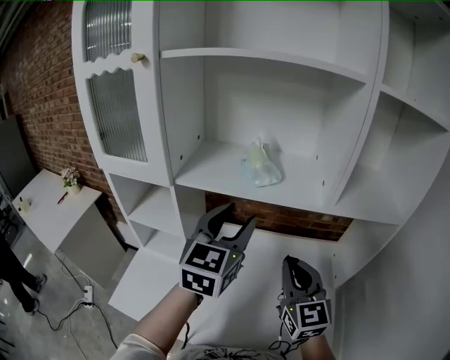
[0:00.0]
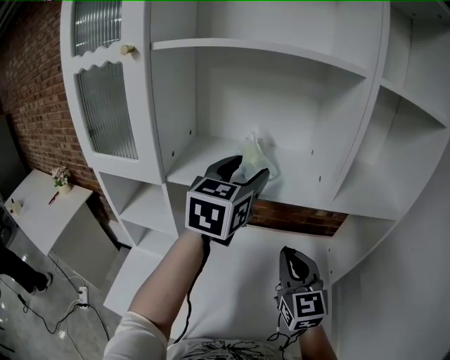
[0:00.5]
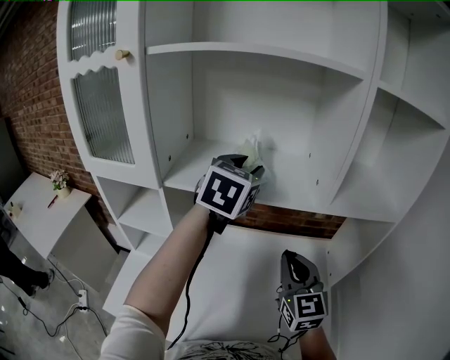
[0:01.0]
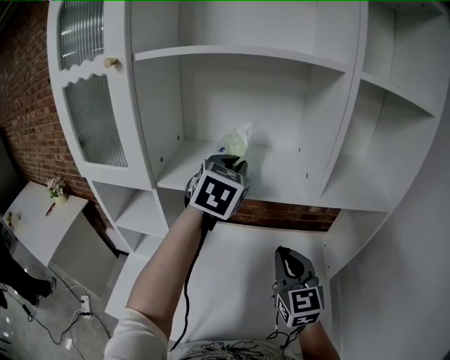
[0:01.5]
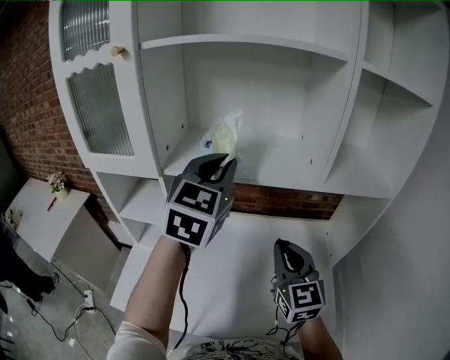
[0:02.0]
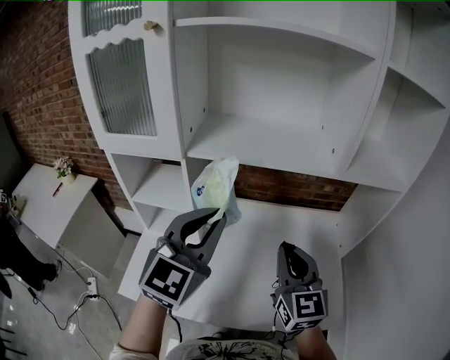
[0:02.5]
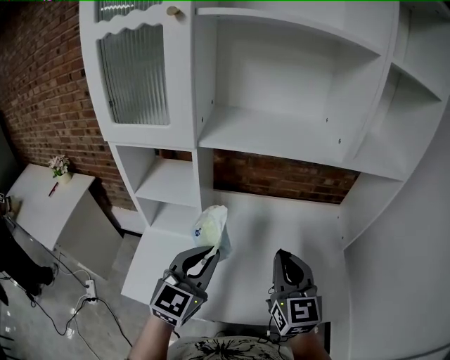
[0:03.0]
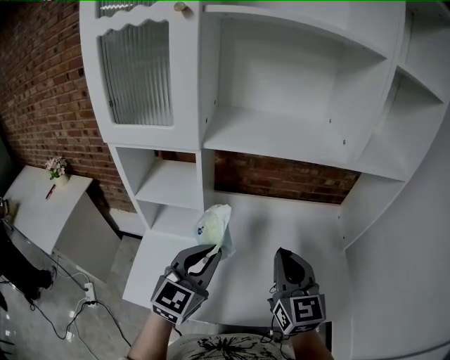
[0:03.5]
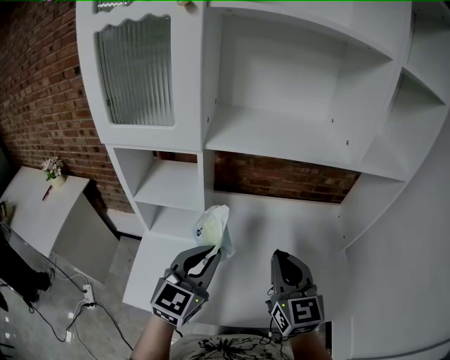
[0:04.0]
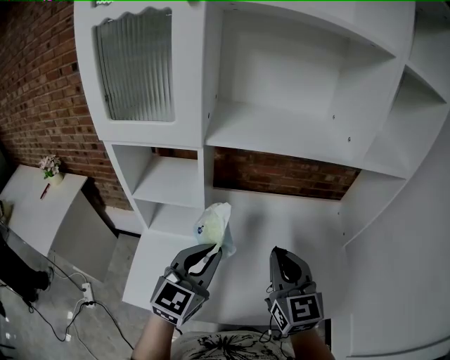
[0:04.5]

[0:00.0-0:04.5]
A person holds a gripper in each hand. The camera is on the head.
0:00.0 to 0:02.0: The left gripper moves upward, about 5 cm, goes forward and returns, approximately 10 cm each way, and closes.
0:02.0 to 0:04.5: The right gripper shifts about 15 cm to the left, backward and downward. Meanwhile the left gripper shifts approximately 30 cm downward, backward and to the left.

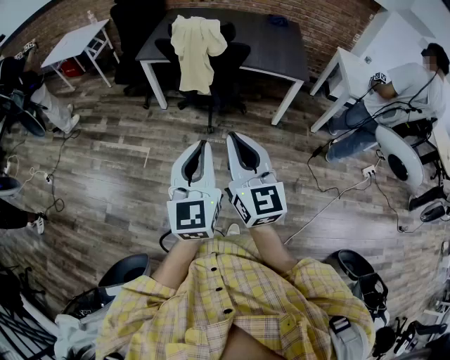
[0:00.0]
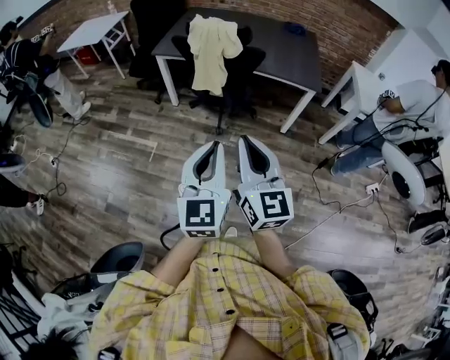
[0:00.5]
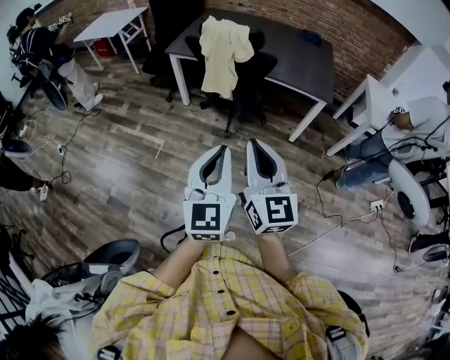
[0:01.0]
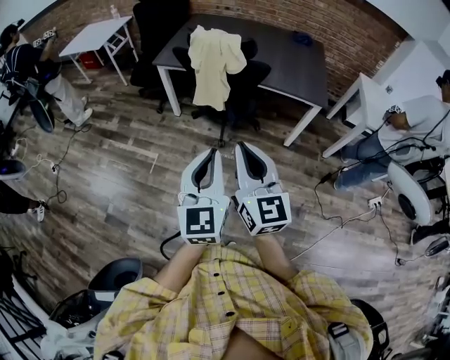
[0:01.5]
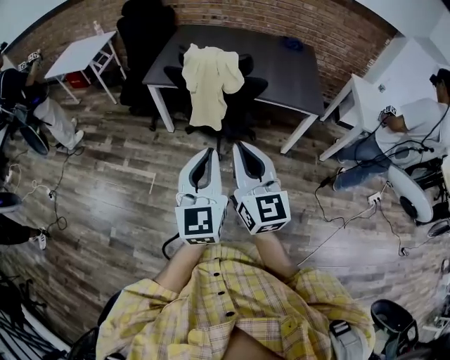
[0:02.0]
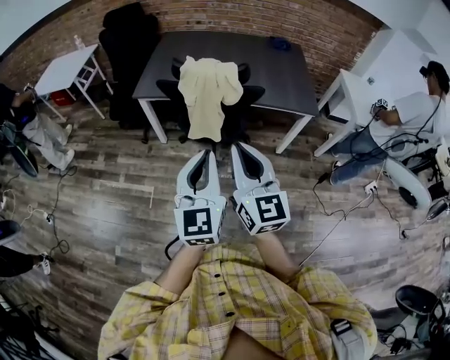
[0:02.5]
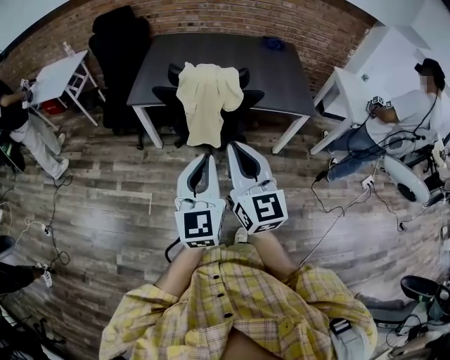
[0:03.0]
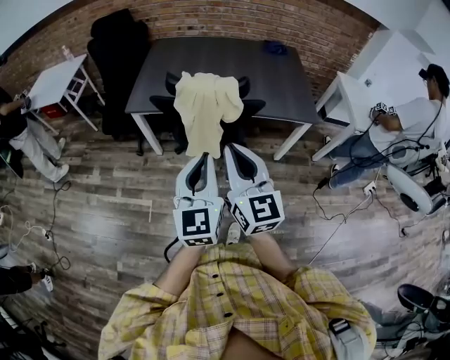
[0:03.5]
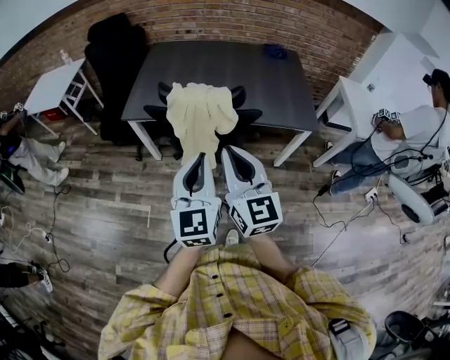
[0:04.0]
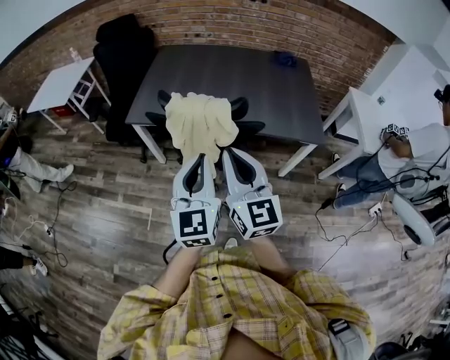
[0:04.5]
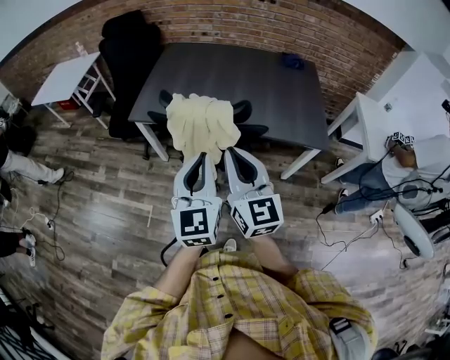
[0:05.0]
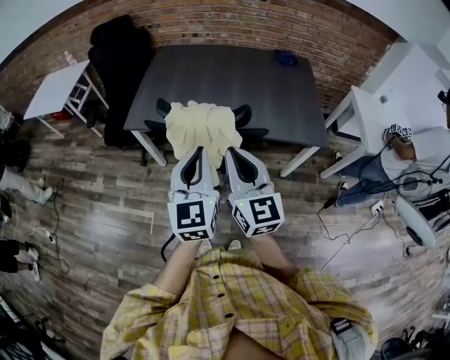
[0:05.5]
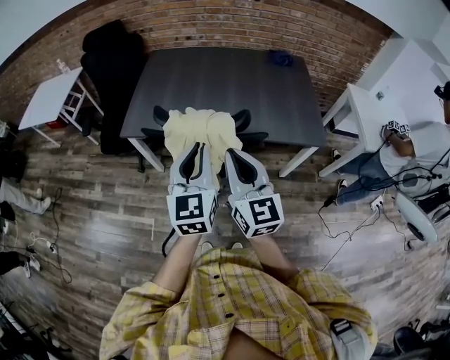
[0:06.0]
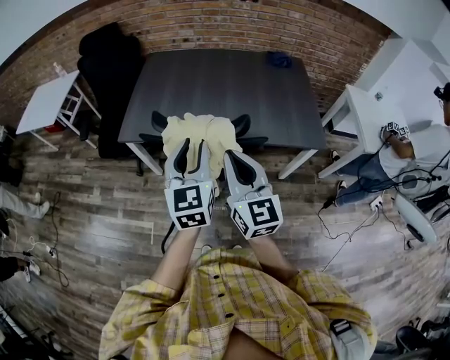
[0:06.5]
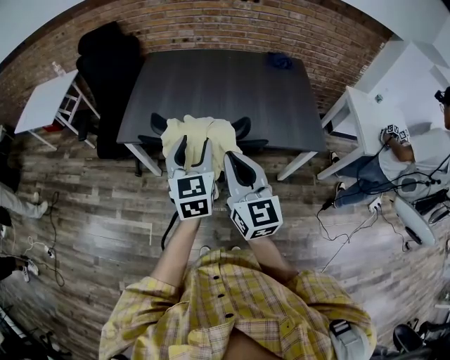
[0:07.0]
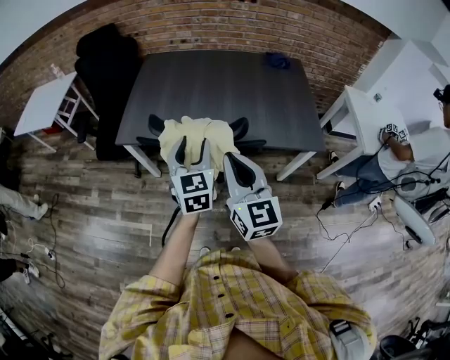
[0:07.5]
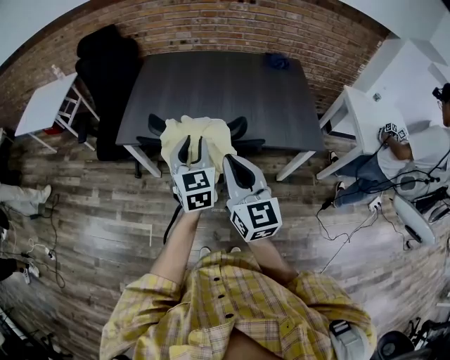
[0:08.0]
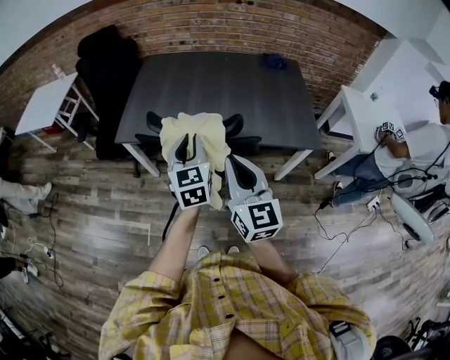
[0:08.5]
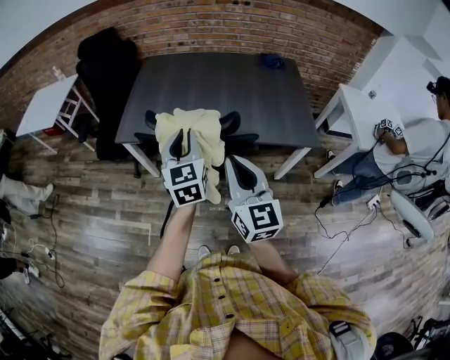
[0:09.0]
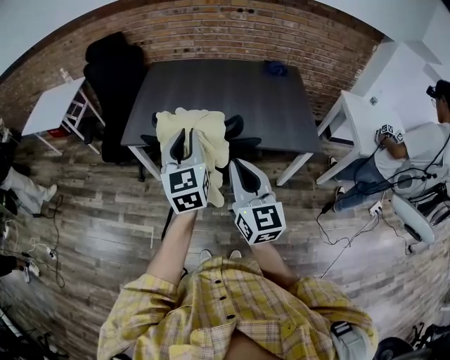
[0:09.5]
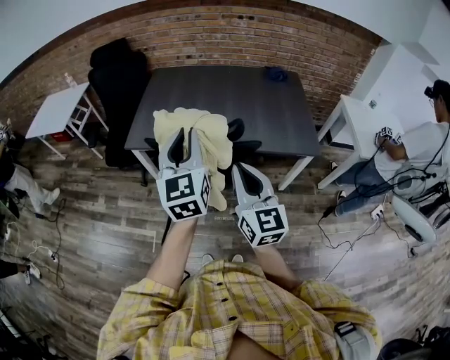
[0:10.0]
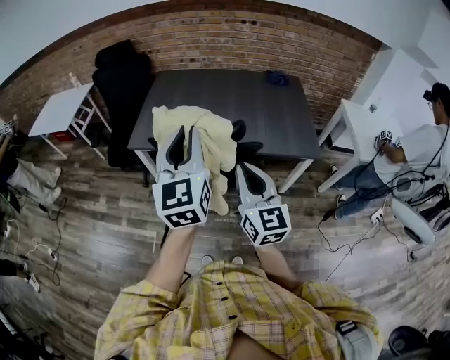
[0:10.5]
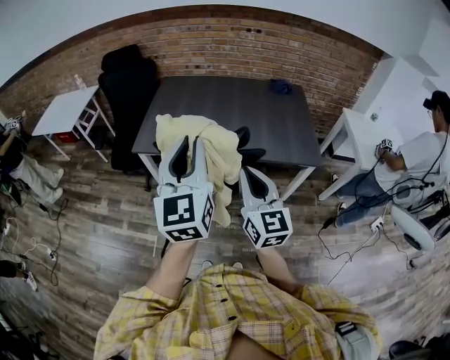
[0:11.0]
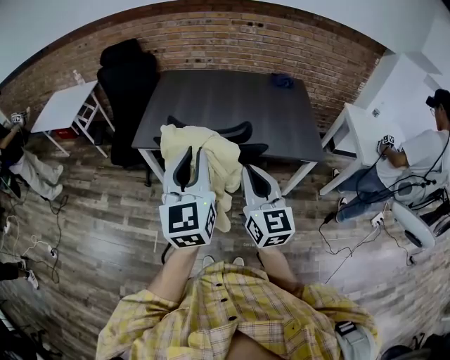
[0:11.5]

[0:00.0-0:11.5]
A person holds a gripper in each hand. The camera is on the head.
0:00.0 to 0:02.0: The two grippers go approximately 20 cm forward.
0:02.0 to 0:04.0: The grippers both shift forward by some 20 cm.
0:04.0 to 0:06.0: The grippers both shift forward by roughly 15 cm.
0:06.0 to 0:07.5: The left gripper heads forward and downward, covering roughly 10 cm, and opens.
0:07.5 to 0:09.5: The left gripper travels upward and backward by some 10 cm, and closes up, while the right gripper heads backward, covering some 5 cm.
0:09.5 to 0:11.5: The left gripper is displaced backward and upward by approximately 15 cm.

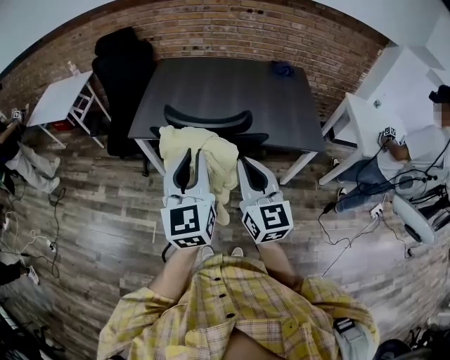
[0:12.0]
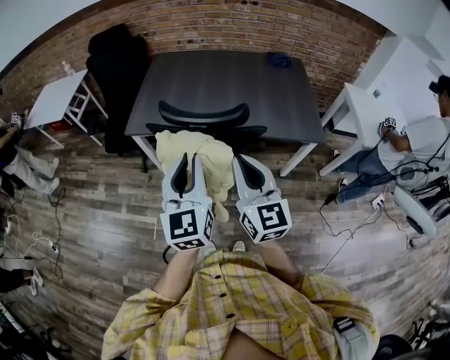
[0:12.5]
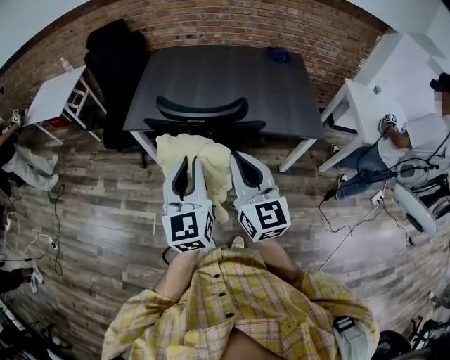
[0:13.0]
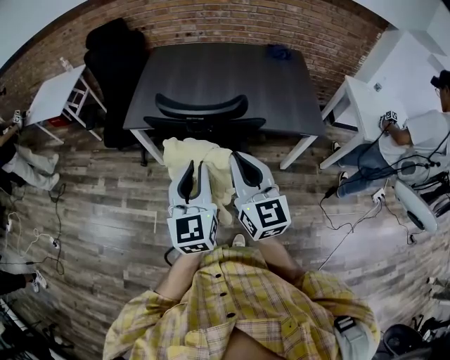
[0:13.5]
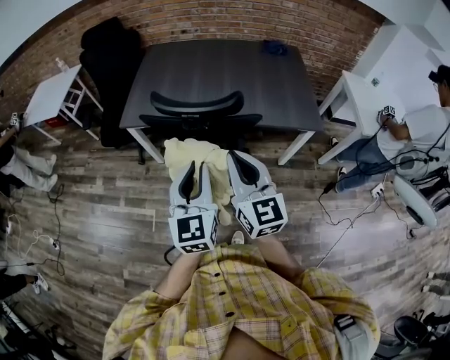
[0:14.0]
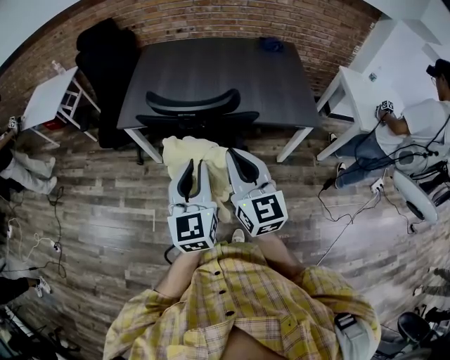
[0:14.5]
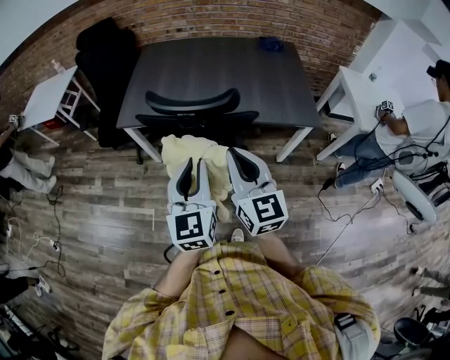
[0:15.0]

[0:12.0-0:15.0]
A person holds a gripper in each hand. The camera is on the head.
0:12.0 to 0:13.5: The left gripper moves downward, about 5 cm.
0:13.5 to 0:15.0: There are only small adjustments of the grippers.

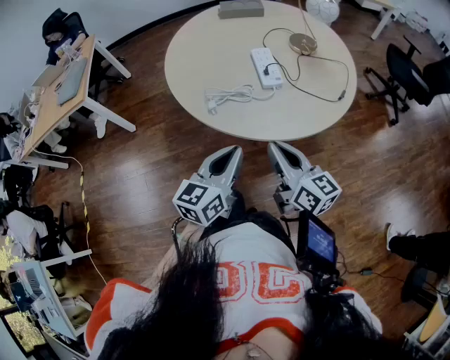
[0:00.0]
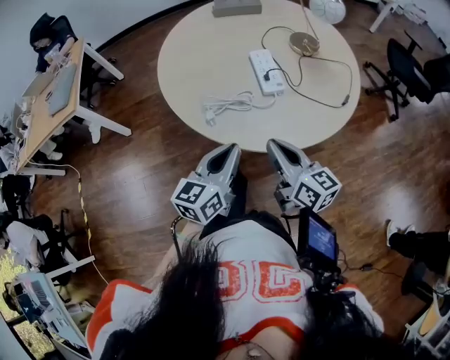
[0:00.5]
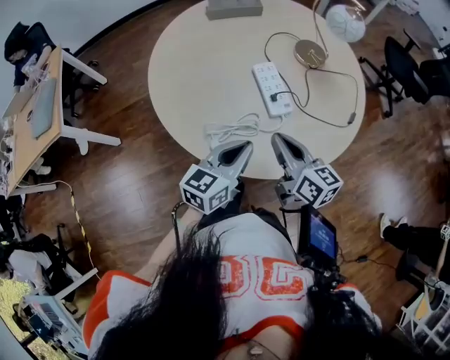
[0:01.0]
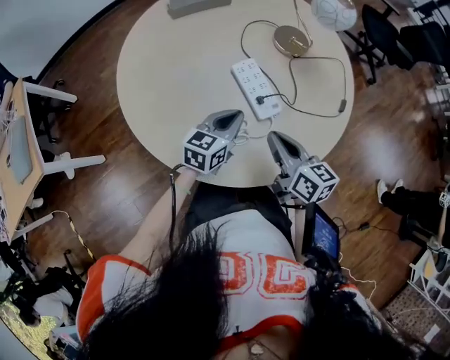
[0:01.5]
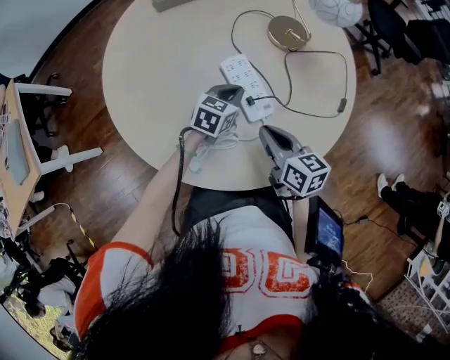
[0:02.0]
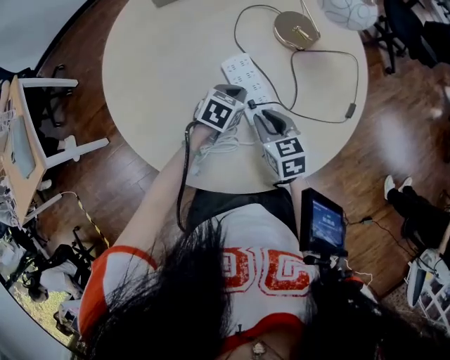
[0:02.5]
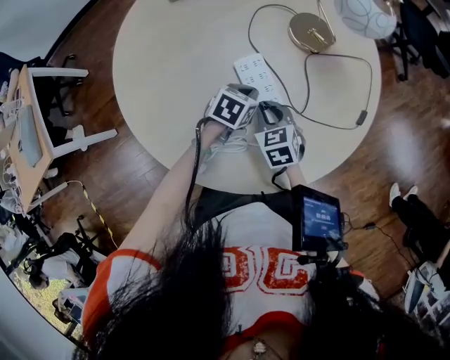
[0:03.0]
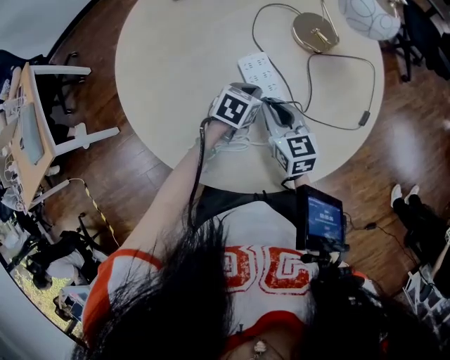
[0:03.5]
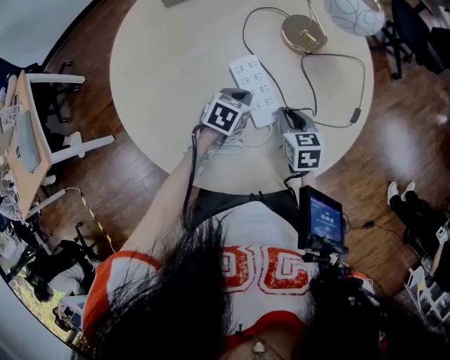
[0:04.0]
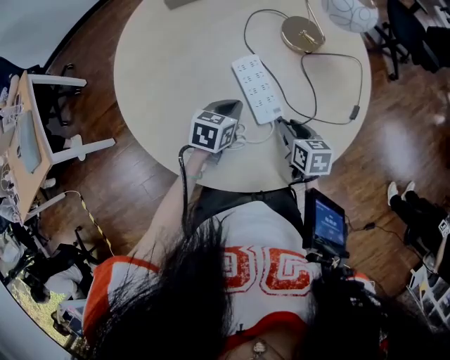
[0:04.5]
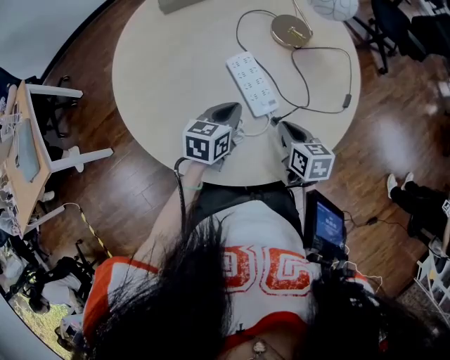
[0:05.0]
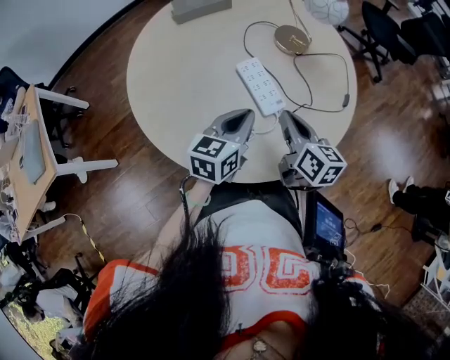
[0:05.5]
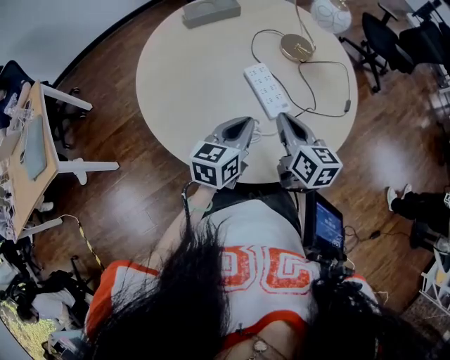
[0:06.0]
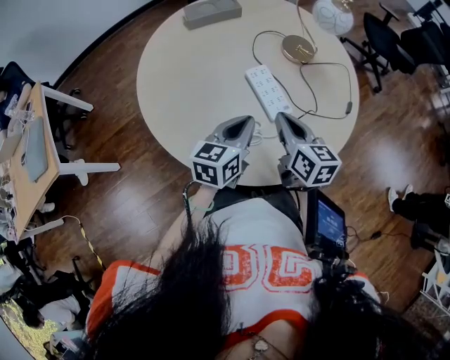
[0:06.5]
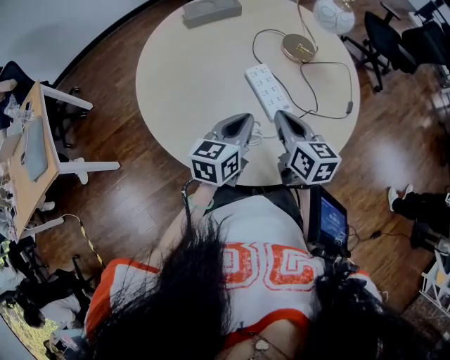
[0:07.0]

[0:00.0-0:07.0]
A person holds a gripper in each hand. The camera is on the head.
0:00.0 to 0:02.0: The left gripper is displaced forward and downward by some 40 cm, and swivels roughly 40 degrees, while the right gripper travels forward and downward by some 25 cm, and swivels approximately 30 degrees.
0:02.0 to 0:03.5: The right gripper shifts some 5 cm forward, and changes its angle by approximately 20 degrees.
0:03.5 to 0:05.0: The right gripper travels to the right and backward by approximately 10 cm, and swivels some 20 degrees; the left gripper moves upward and backward, about 10 cm, and turns by roughly 20 degrees.
0:05.0 to 0:07.0: The right gripper is displaced upward and to the left by approximately 15 cm, and swivels about 20 degrees, while the left gripper goes about 10 cm upward.
